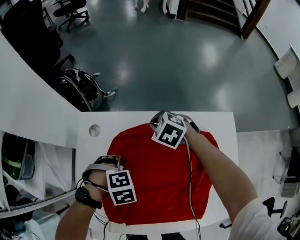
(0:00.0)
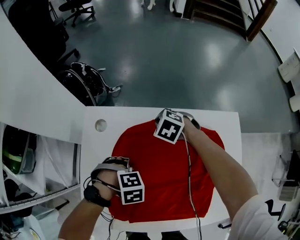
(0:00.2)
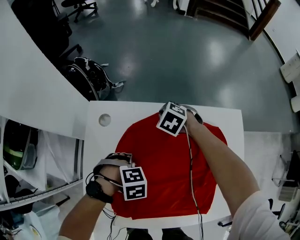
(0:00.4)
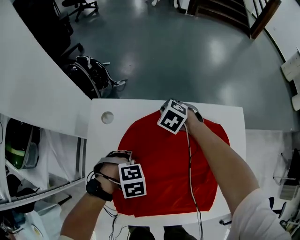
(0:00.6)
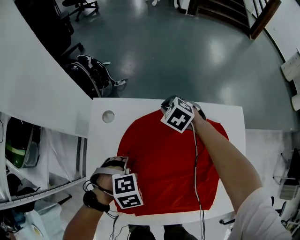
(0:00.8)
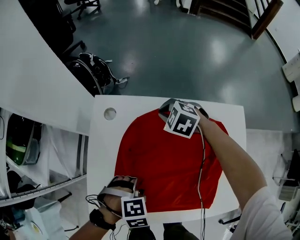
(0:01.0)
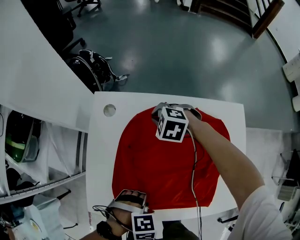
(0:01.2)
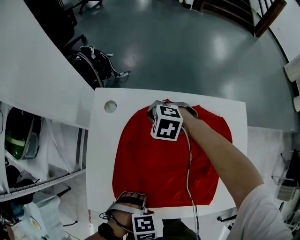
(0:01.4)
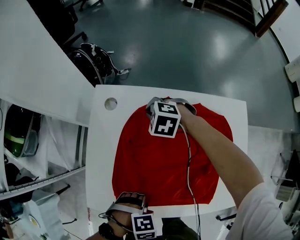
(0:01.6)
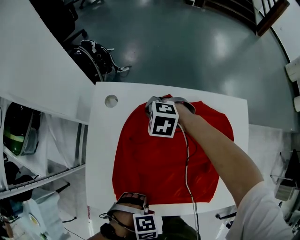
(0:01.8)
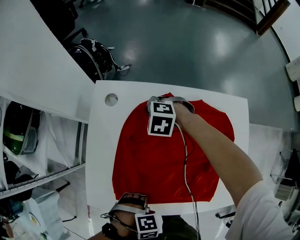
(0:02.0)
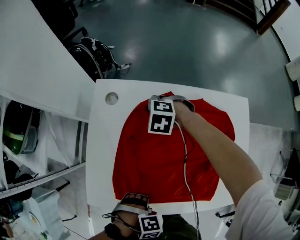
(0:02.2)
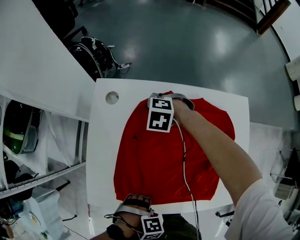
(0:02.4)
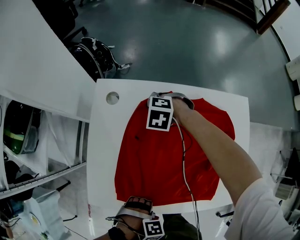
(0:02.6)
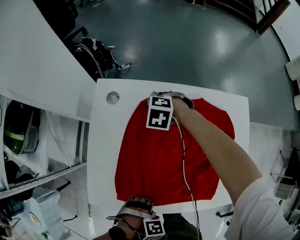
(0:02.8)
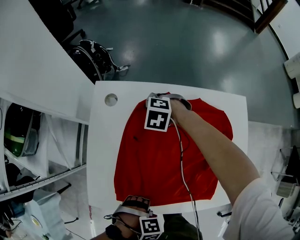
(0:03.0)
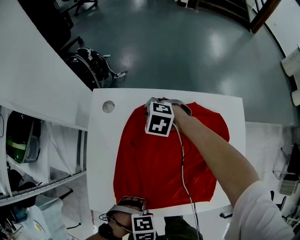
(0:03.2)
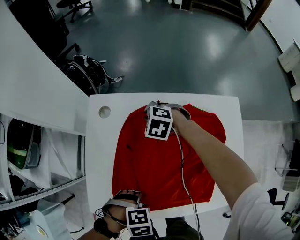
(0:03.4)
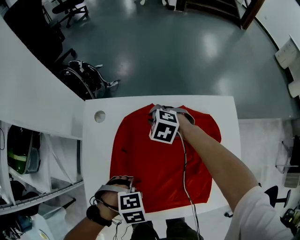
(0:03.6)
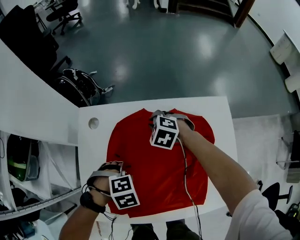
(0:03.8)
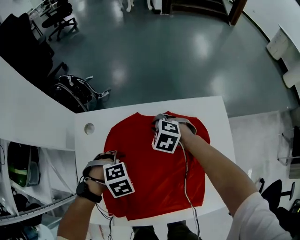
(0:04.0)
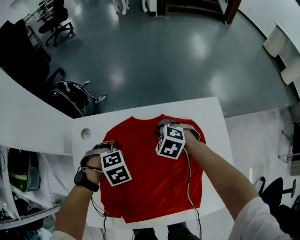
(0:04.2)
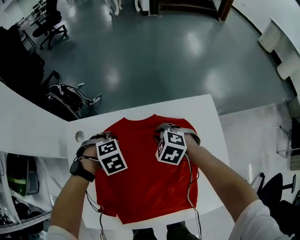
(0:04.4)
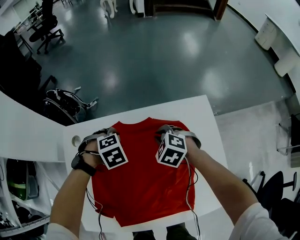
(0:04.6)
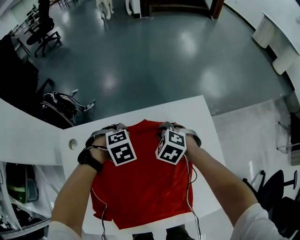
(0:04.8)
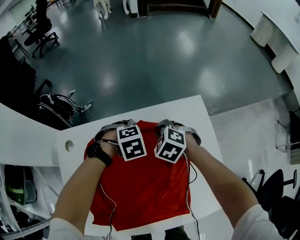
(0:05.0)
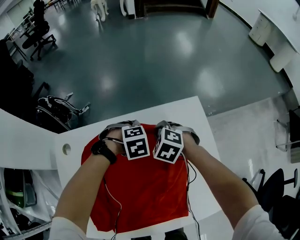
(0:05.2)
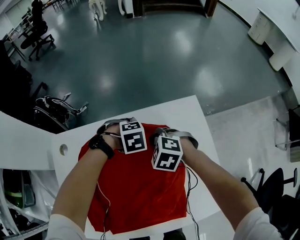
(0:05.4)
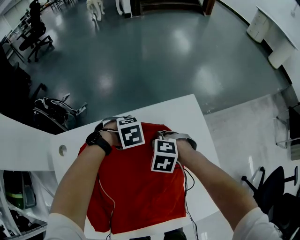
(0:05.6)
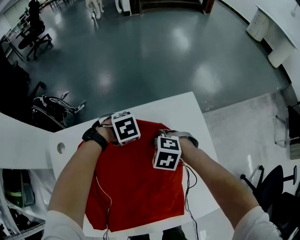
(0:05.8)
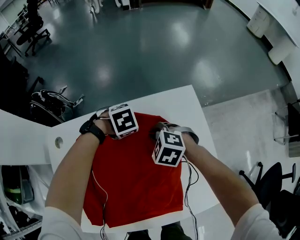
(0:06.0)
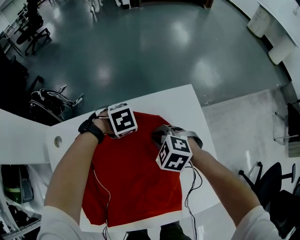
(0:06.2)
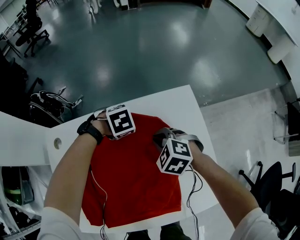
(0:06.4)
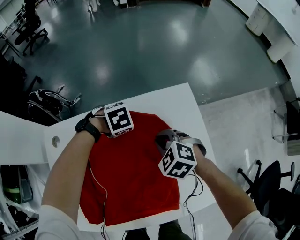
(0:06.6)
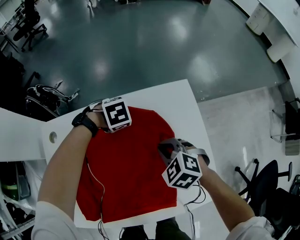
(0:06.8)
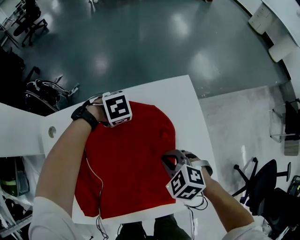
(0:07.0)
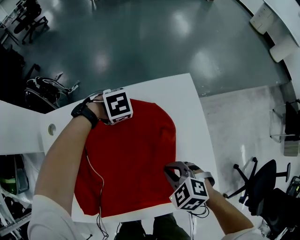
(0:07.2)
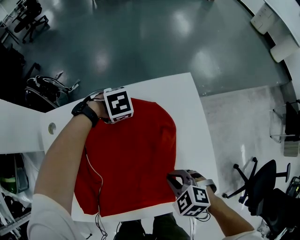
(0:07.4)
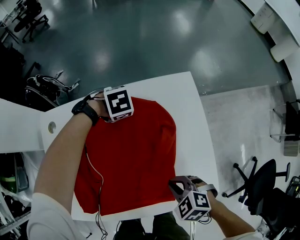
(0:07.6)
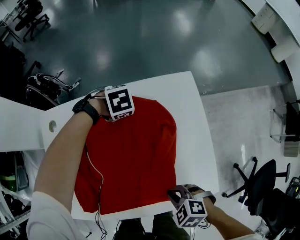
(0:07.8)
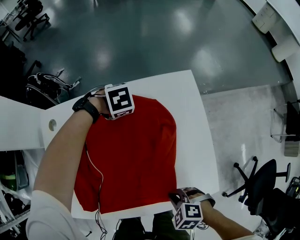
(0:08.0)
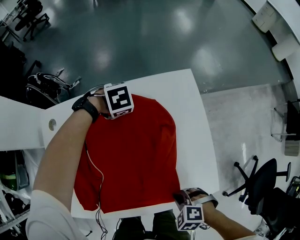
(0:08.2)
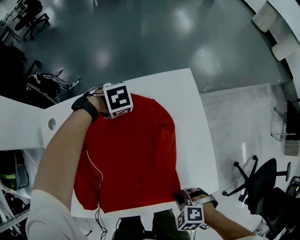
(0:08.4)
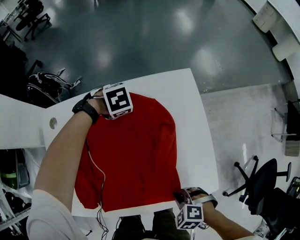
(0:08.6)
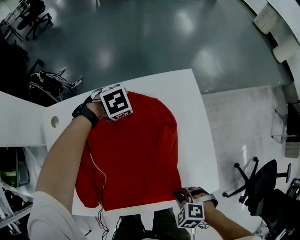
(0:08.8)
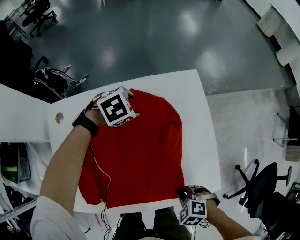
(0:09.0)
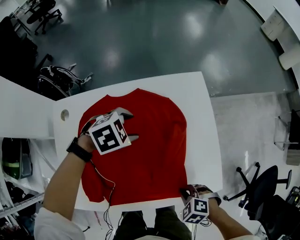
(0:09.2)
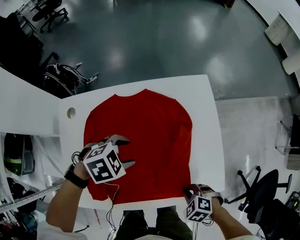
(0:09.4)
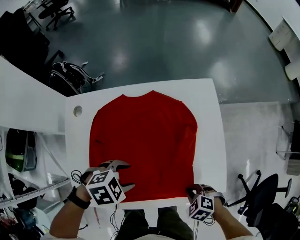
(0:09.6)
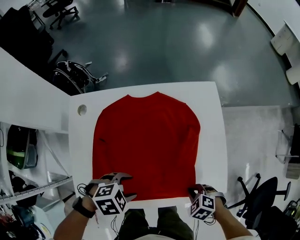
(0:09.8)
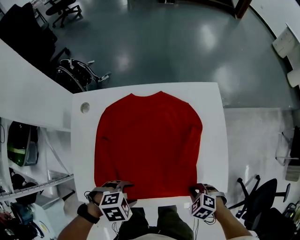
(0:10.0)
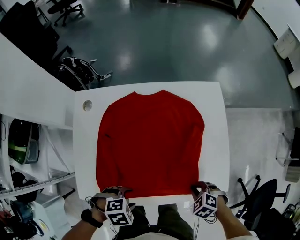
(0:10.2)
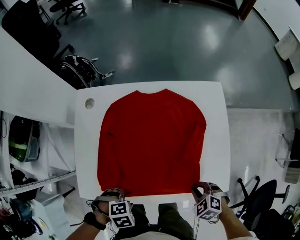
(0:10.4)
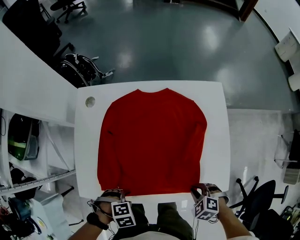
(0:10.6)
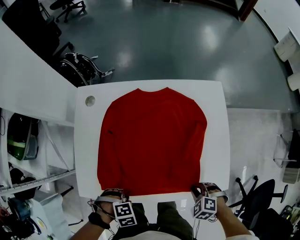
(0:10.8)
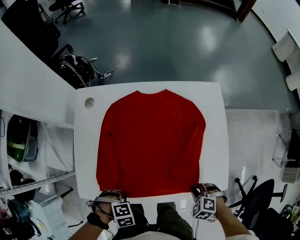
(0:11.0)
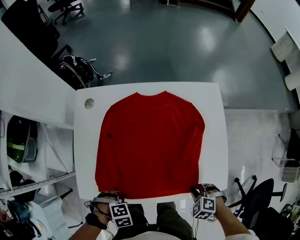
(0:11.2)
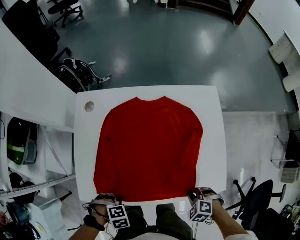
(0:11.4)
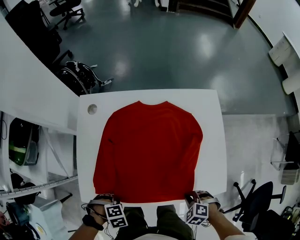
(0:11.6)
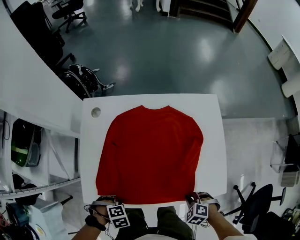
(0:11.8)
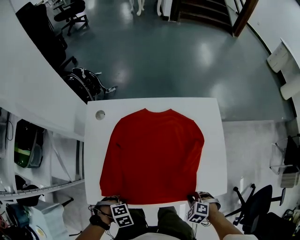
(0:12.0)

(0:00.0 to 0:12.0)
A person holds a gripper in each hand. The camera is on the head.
0:00.0 - 0:01.6: The left gripper ends up some 25 cm from where it was. The right gripper moves approximately 10 cm.
0:01.6 - 0:03.0: The left gripper ends up some 5 cm from where it was.
0:03.0 - 0:04.4: The right gripper shifts by approximately 20 cm, and swivels approximately 20 degrees, while the left gripper moves about 35 cm.
0:04.4 - 0:06.0: The right gripper moves roughly 10 cm, while the left gripper changes place by roughly 20 cm.
0:06.0 - 0:07.6: The right gripper shifts by roughly 25 cm.
0:07.6 - 0:09.0: The right gripper moves some 10 cm; the left gripper changes place by about 5 cm.
0:09.0 - 0:10.4: The left gripper changes place by roughly 50 cm.
0:10.4 - 0:12.0: The right gripper changes place by approximately 5 cm, while the left gripper ends up about 10 cm from where it was, and closes.

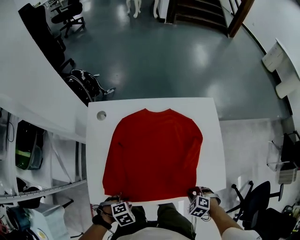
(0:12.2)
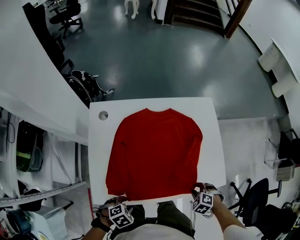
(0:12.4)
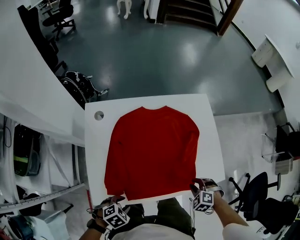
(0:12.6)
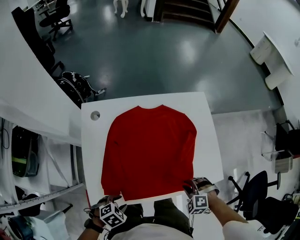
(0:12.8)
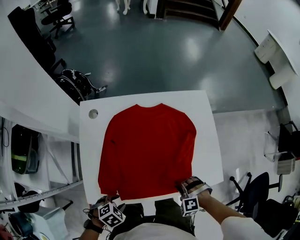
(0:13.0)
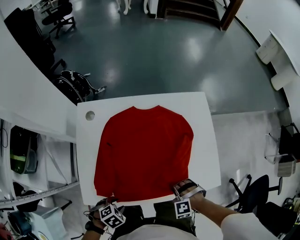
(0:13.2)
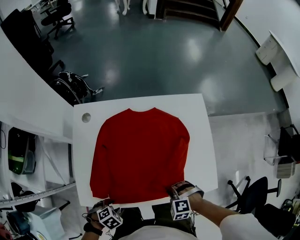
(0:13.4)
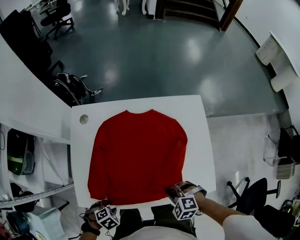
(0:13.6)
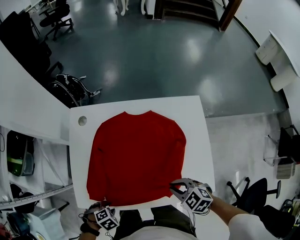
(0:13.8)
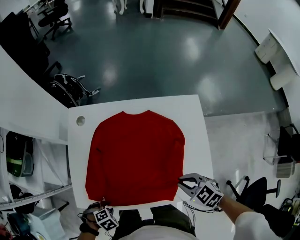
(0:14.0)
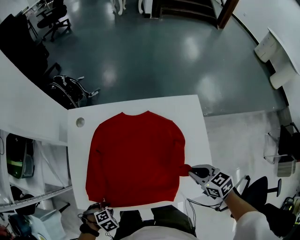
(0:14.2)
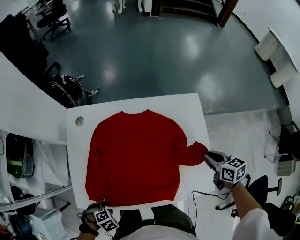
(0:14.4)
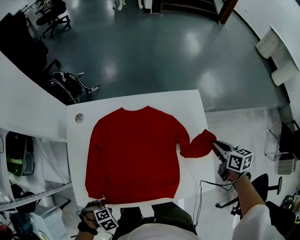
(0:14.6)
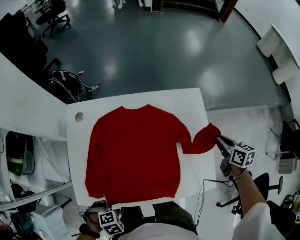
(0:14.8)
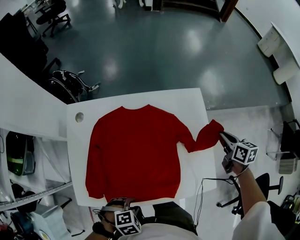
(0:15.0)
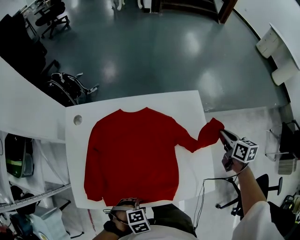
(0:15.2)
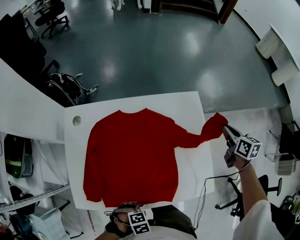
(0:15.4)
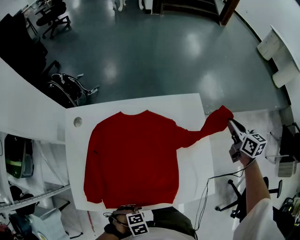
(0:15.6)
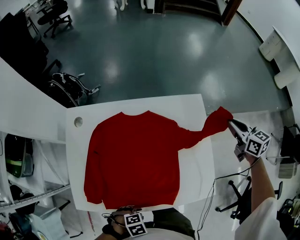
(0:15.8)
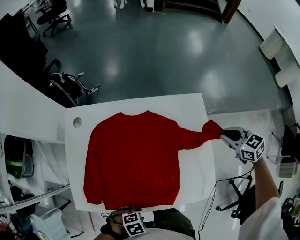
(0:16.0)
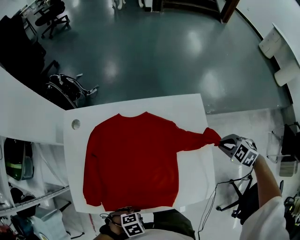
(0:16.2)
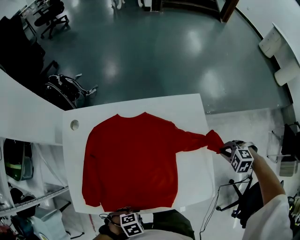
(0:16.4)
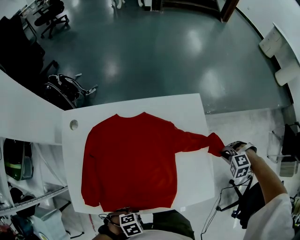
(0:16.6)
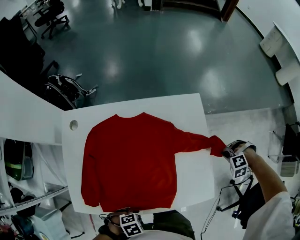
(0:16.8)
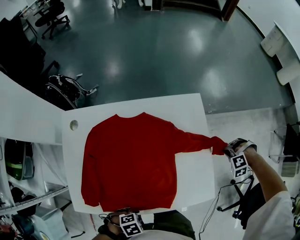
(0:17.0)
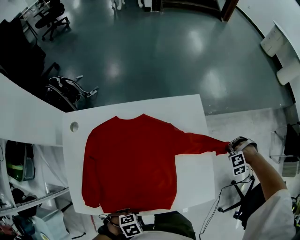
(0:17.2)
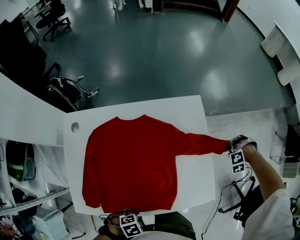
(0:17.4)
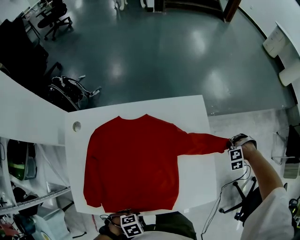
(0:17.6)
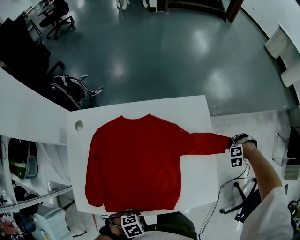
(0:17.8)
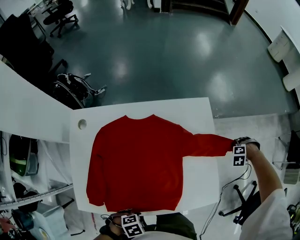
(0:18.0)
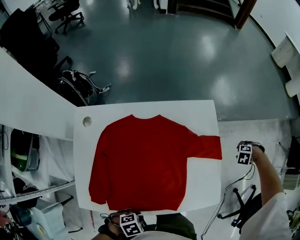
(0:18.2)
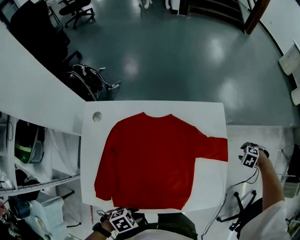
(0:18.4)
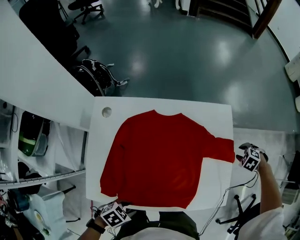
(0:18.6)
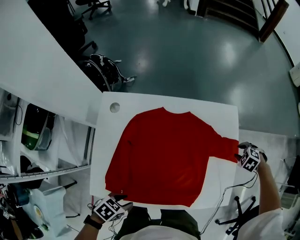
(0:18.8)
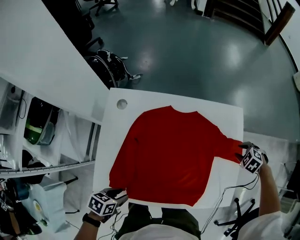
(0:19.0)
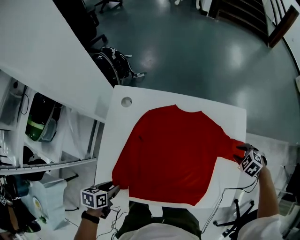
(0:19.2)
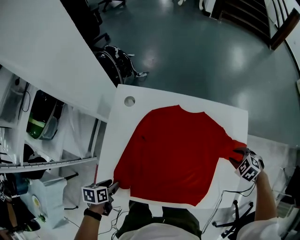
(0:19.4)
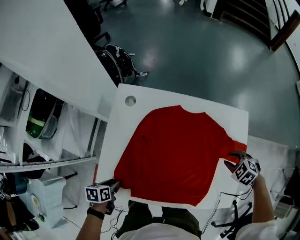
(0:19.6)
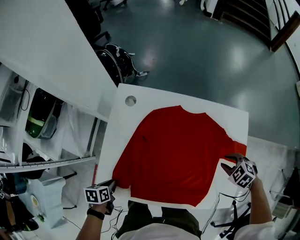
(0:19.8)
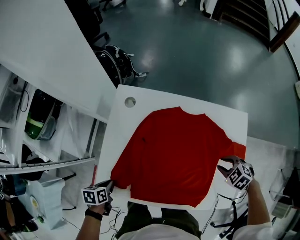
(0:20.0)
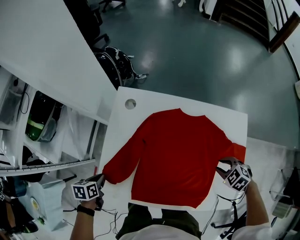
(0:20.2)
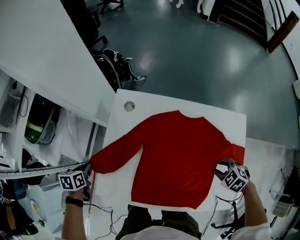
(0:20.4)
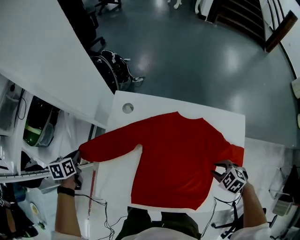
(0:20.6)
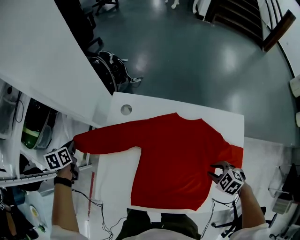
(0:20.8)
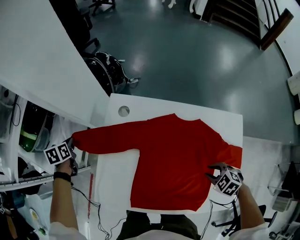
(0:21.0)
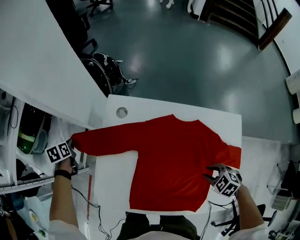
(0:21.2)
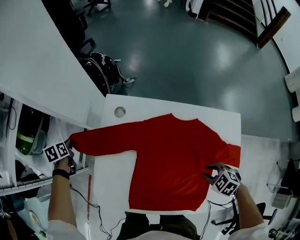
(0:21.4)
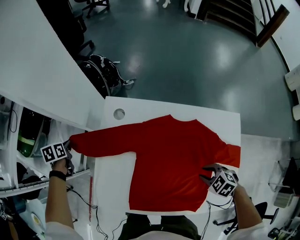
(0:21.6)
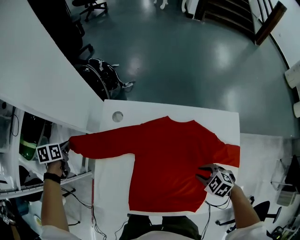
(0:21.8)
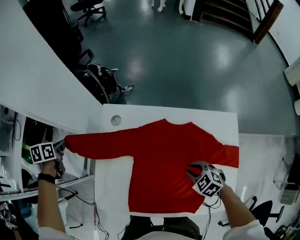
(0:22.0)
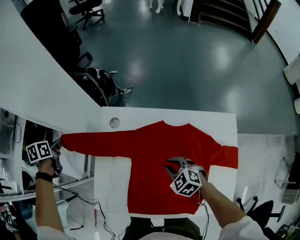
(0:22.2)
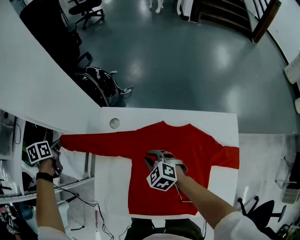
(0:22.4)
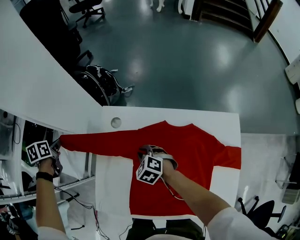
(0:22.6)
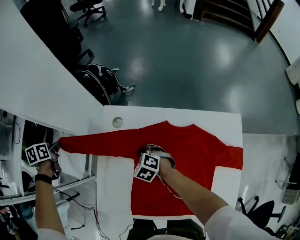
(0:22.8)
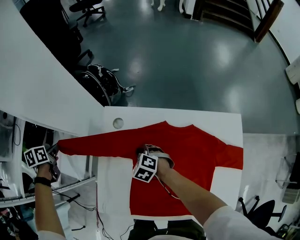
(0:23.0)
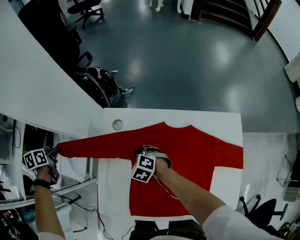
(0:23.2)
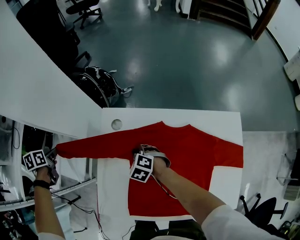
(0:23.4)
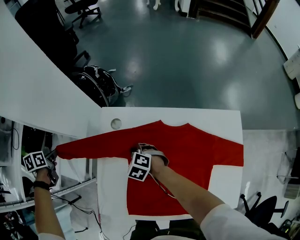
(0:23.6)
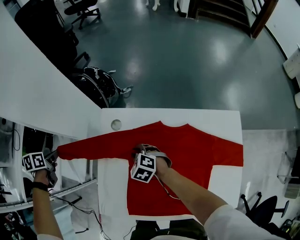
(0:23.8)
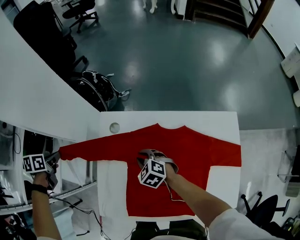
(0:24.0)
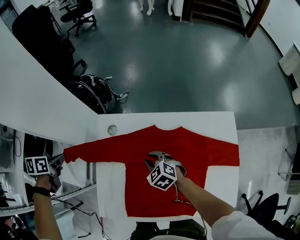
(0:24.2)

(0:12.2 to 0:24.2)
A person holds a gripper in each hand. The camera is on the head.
0:12.2 - 0:13.8: The right gripper travels upward by approximately 10 cm, and rotates approximately 30 degrees.
0:13.8 - 0:15.2: The right gripper moves roughly 35 cm, and rolls clockwise, seen from behind, by about 50 degrees, while the left gripper shifts by roughly 20 cm, and turns by approximately 20 degrees.
0:15.2 - 0:16.6: The right gripper heads downward, covering roughly 10 cm, and rolls counterclockwise, seen from behind, by approximately 90 degrees.
0:16.6 - 0:18.2: The right gripper ends up roughly 10 cm from where it was, turns by roughly 30 degrees, and opens its fingers.
0:18.2 - 0:19.8: The left gripper changes place by approximately 30 cm, and rotates around the line of its fingers by roughly 80 degrees, counterclockwise from behind; the right gripper changes place by some 35 cm, and turns by approximately 30 degrees.
0:19.8 - 0:21.2: The right gripper shifts by roughly 10 cm. Meanwhile the left gripper shifts by roughly 35 cm, and turns by roughly 30 degrees.
0:21.2 - 0:22.6: The right gripper travels forward and to the left by roughly 30 cm, while the left gripper goes roughly 10 cm upward.
0:22.6 - 0:24.2: The left gripper moves some 5 cm; the right gripper shifts by roughly 5 cm.
